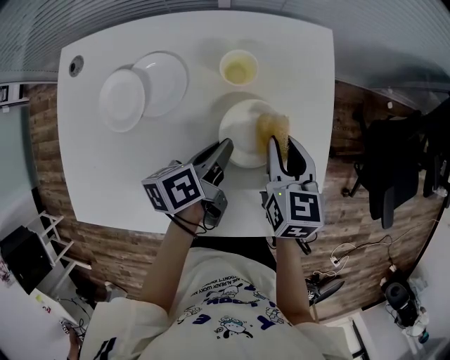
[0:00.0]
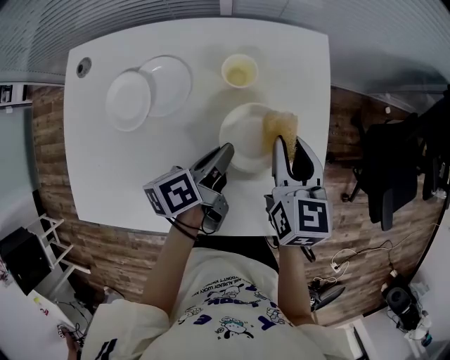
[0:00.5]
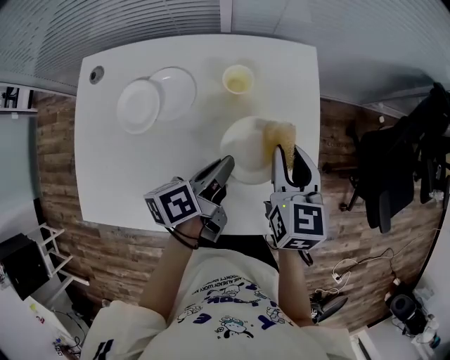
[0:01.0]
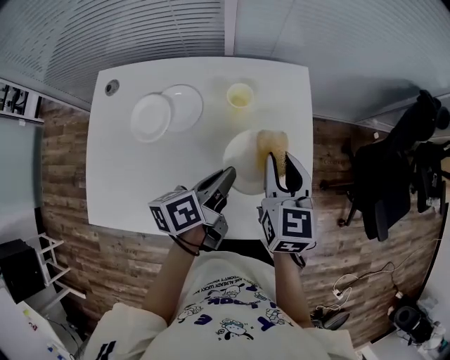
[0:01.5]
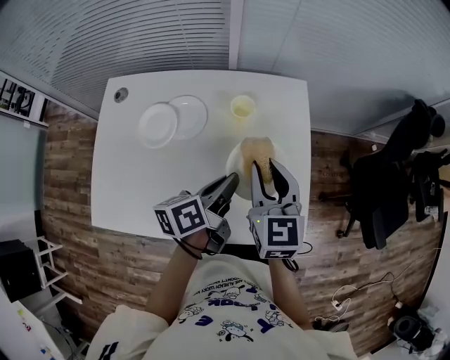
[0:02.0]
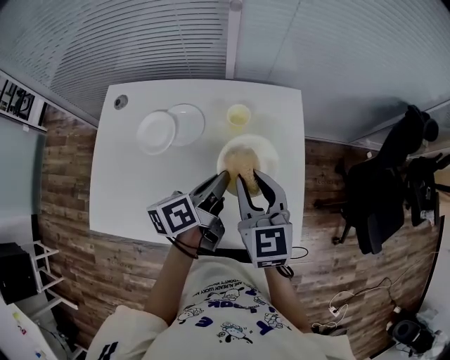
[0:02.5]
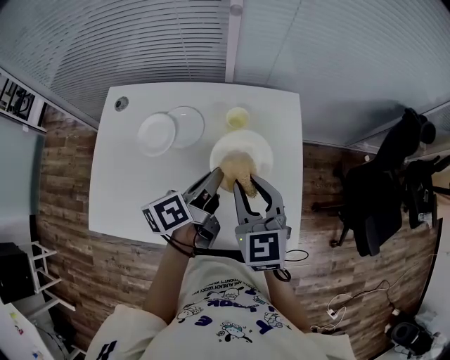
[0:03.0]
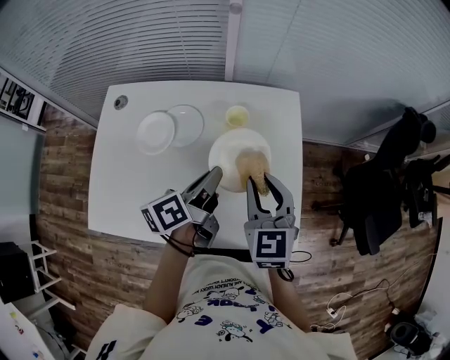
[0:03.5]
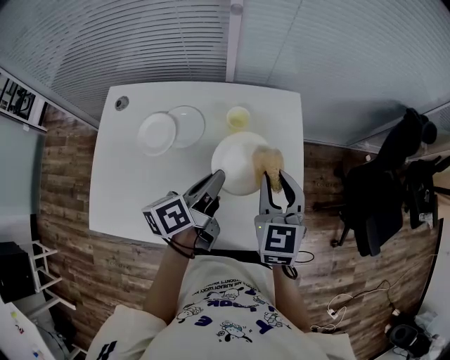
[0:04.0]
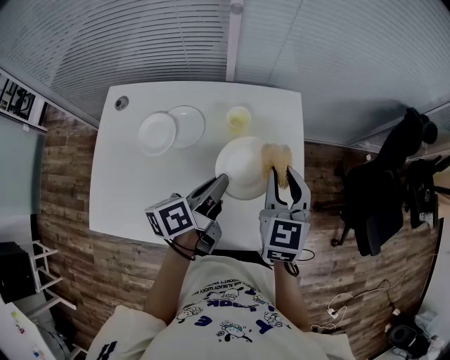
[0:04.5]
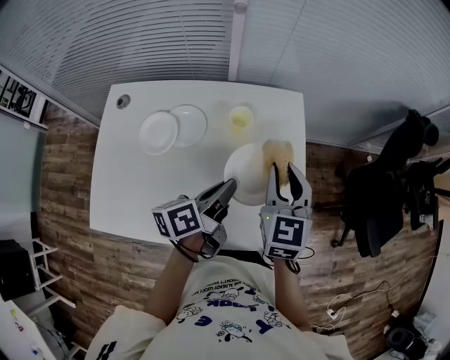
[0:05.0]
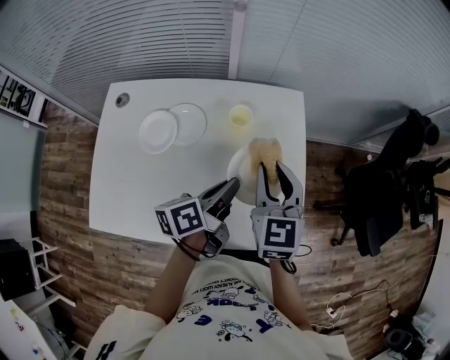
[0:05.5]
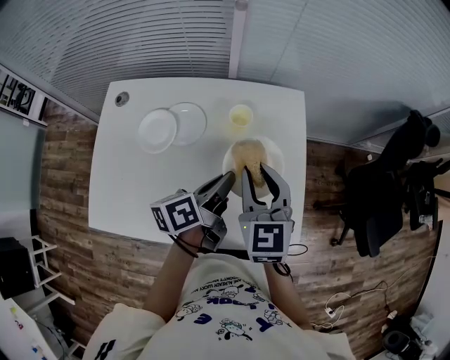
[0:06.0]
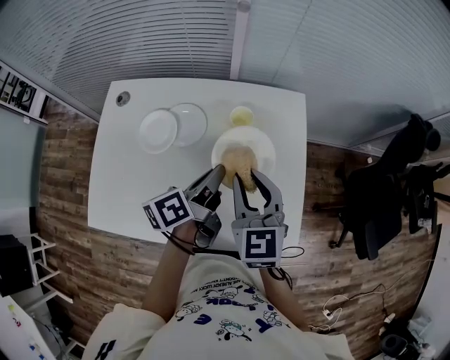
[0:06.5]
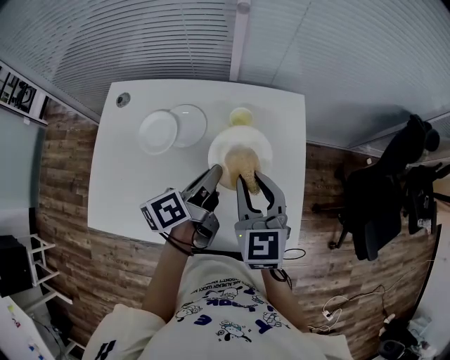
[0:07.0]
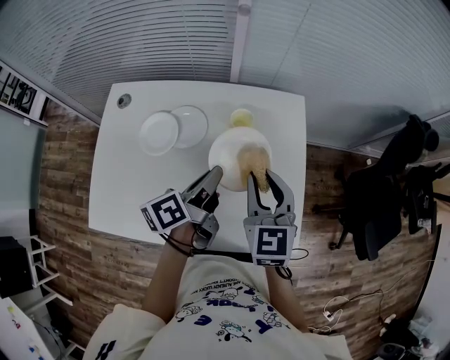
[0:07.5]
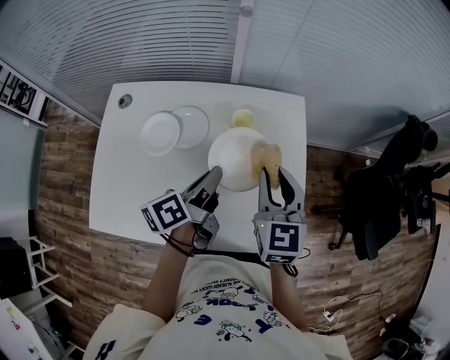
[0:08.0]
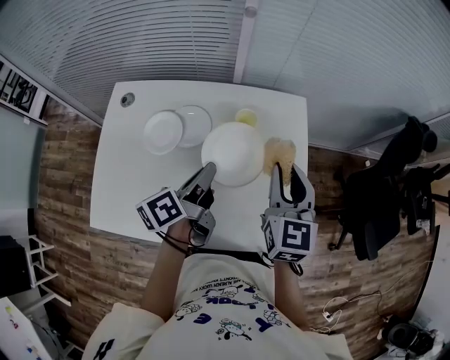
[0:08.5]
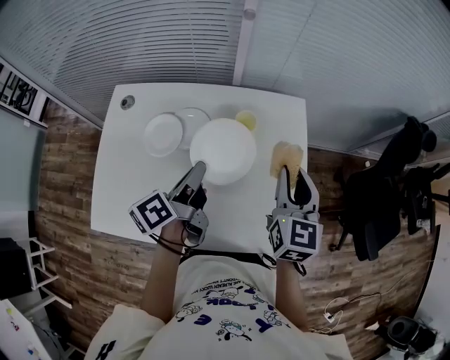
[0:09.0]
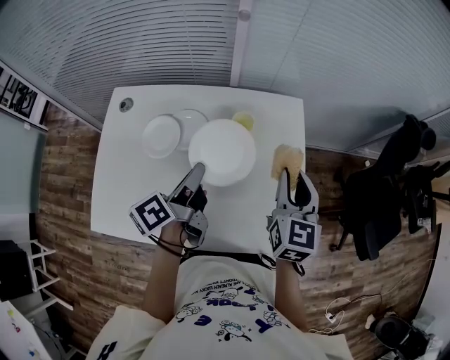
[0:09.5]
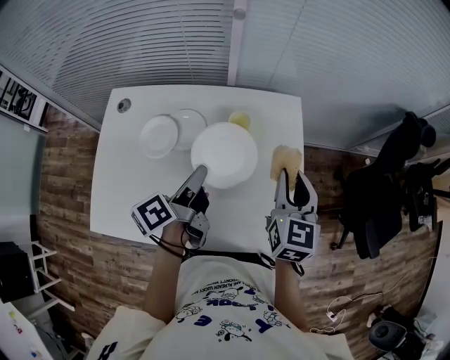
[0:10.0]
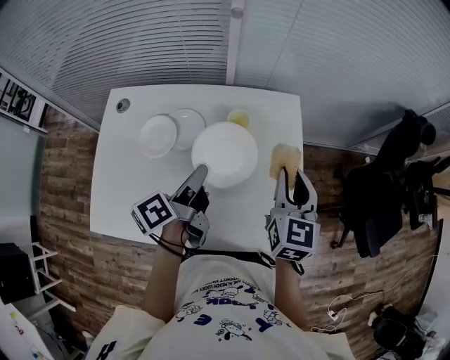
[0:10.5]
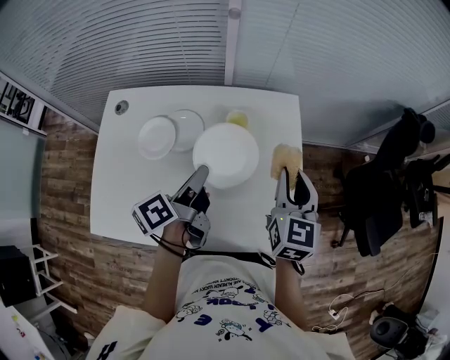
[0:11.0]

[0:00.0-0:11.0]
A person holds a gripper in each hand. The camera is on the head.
0:00.0 to 0:02.0: Both grippers move upward, about 15 cm. The right gripper changes its angle by approximately 20 degrees.
0:02.0 to 0:05.5: There are only small adjustments of the grippers.
0:05.5 to 0:07.5: The left gripper moves some 5 cm.
0:07.5 to 0:09.0: The left gripper shifts roughly 5 cm to the left. The right gripper moves to the right, approximately 5 cm.
0:09.0 to 0:11.0: The grippers move only a little.

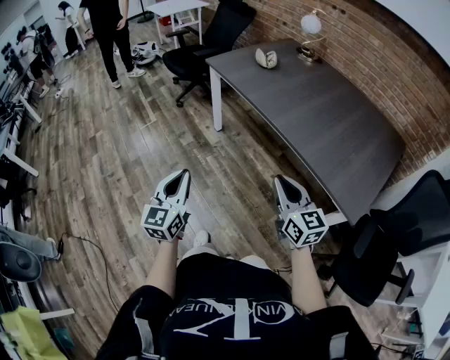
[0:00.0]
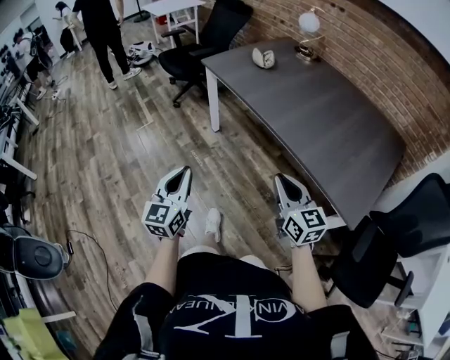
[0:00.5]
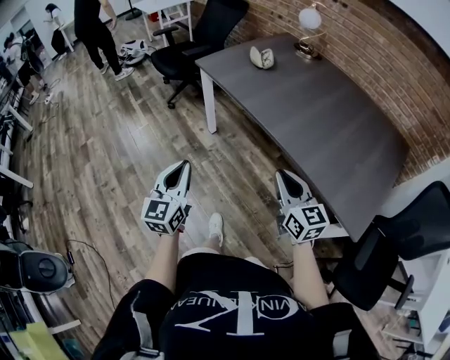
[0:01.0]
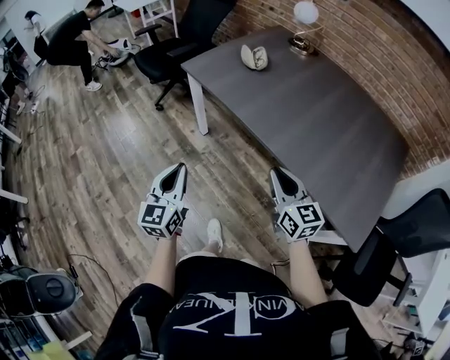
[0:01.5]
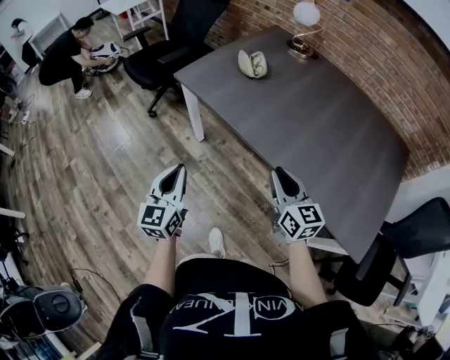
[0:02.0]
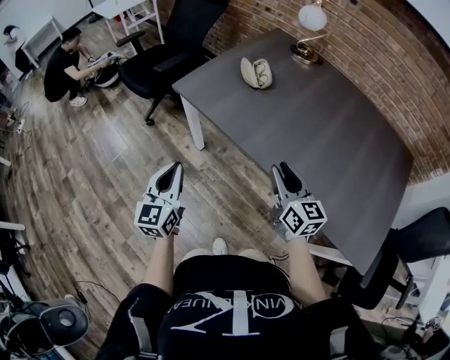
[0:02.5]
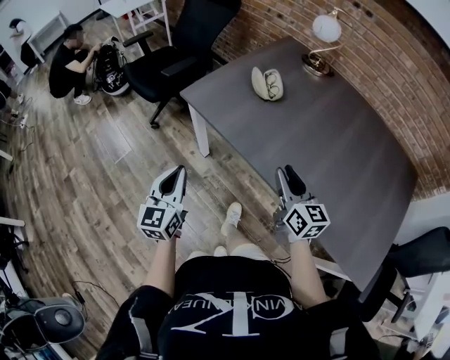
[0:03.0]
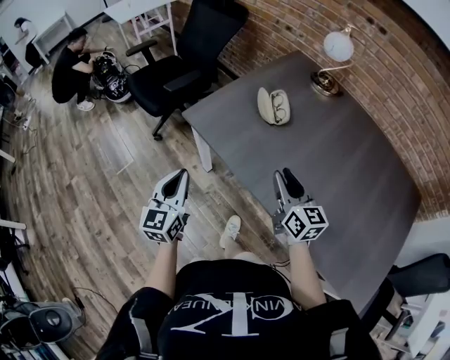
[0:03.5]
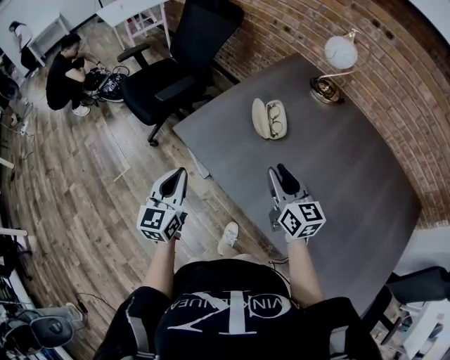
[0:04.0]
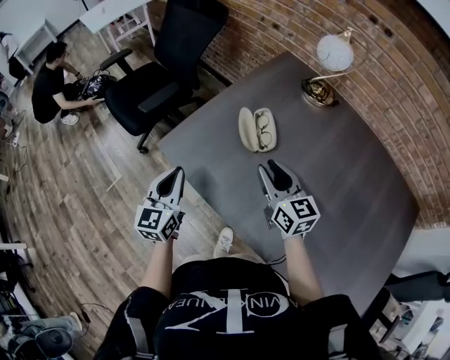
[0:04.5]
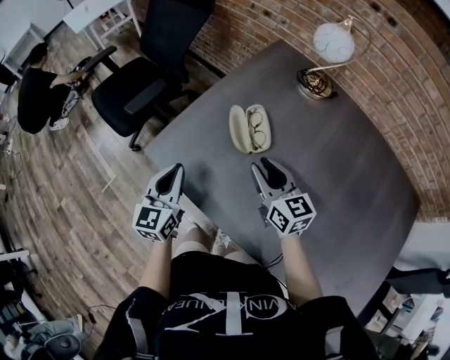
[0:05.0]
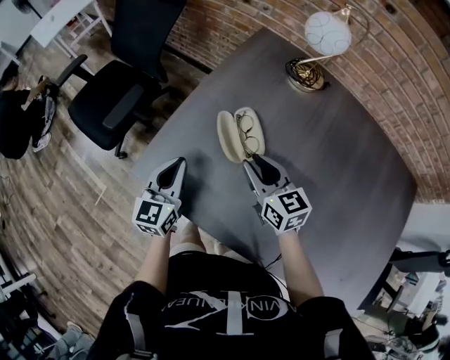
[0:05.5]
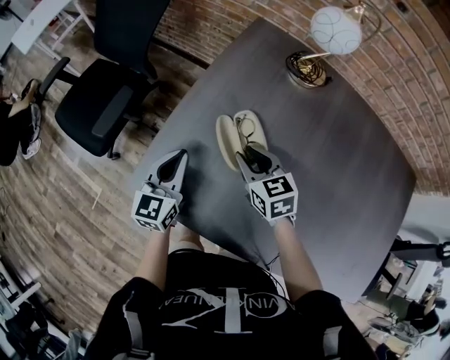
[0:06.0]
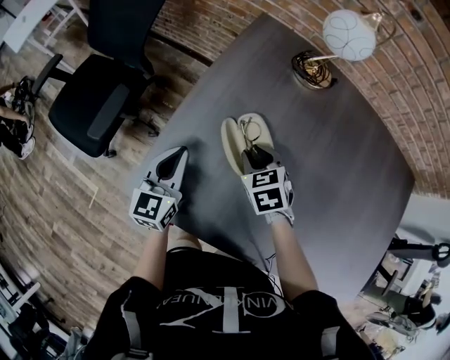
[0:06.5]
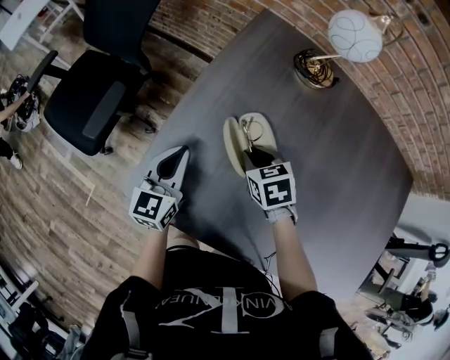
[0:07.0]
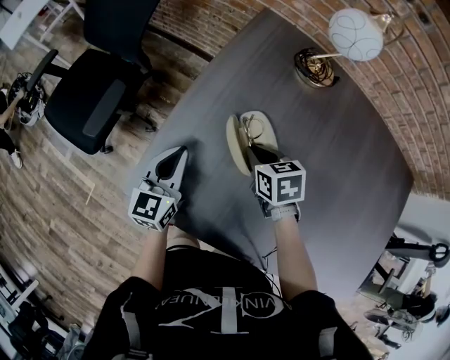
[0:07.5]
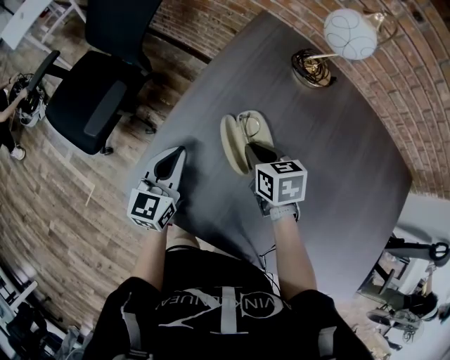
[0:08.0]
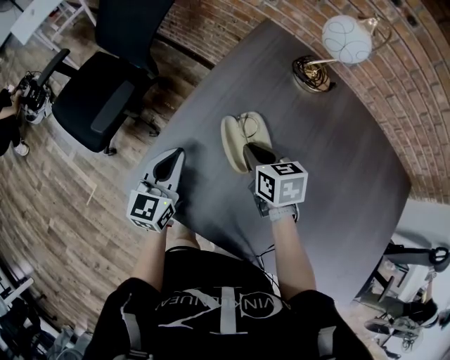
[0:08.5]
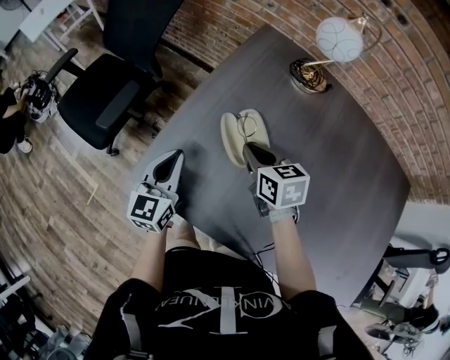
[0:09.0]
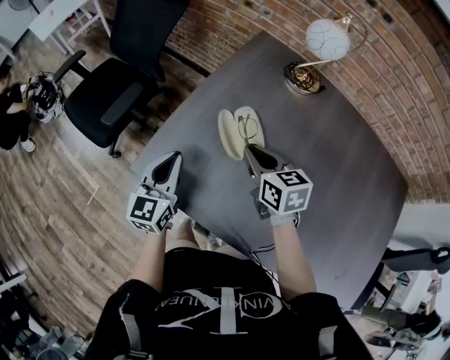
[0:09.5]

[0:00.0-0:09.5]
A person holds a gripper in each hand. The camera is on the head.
0:00.0 to 0:02.0: Both grippers move forward, roughly 30 cm.
0:02.0 to 0:04.0: Both grippers move forward, about 30 cm.
0:04.0 to 0:05.5: The left gripper shifts some 25 cm forward and to the right; the right gripper heads forward, covering approximately 15 cm.
0:05.5 to 0:07.5: The right gripper shifts roughly 15 cm downward and forward, and points its fingers some 30 degrees further downward, while the left gripper shifts about 10 cm forward.
0:07.5 to 0:09.5: The left gripper travels backward and upward by approximately 10 cm; the right gripper goes approximately 10 cm upward and backward, and turns by roughly 20 degrees.

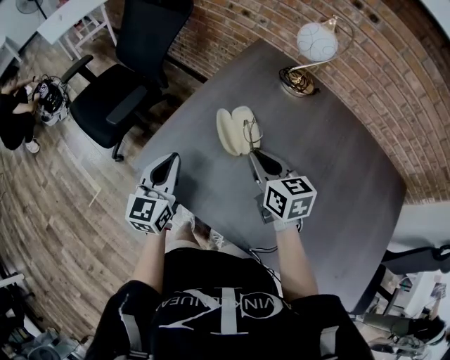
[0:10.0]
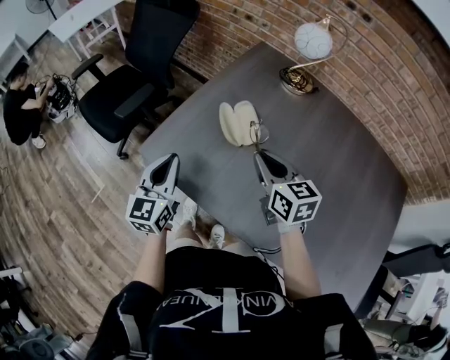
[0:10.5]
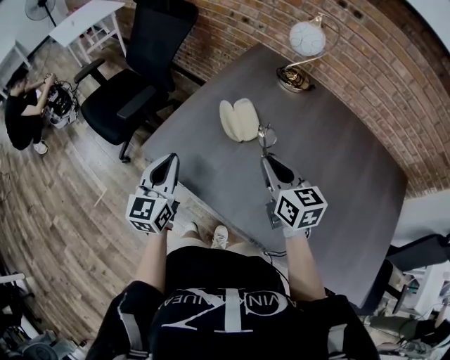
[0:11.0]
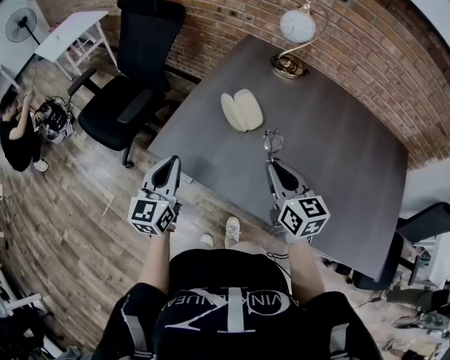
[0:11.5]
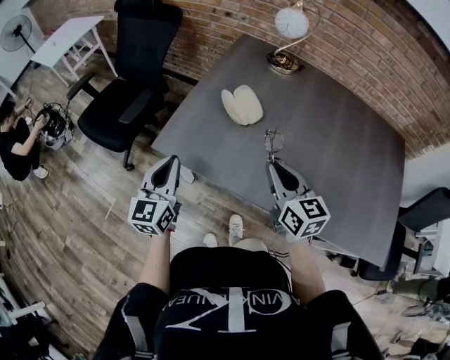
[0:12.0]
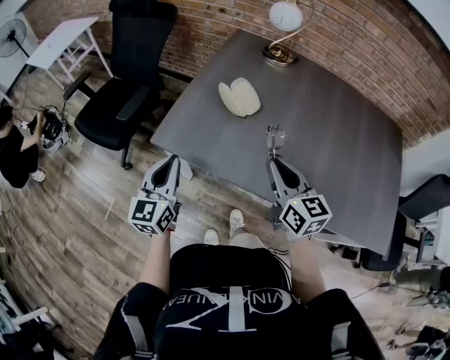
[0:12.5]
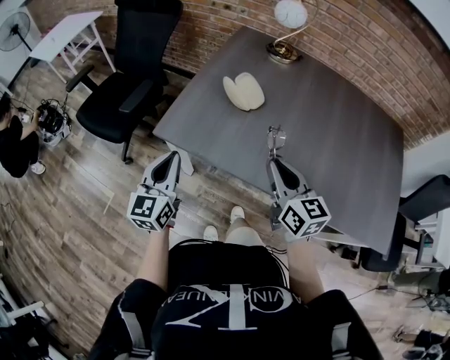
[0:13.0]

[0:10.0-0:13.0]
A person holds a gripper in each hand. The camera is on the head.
0:10.0 to 0:11.5: The right gripper goes about 15 cm backward. The left gripper is displaced backward by approximately 10 cm.
0:11.5 to 0:13.0: Both grippers travel together backward, some 5 cm.
